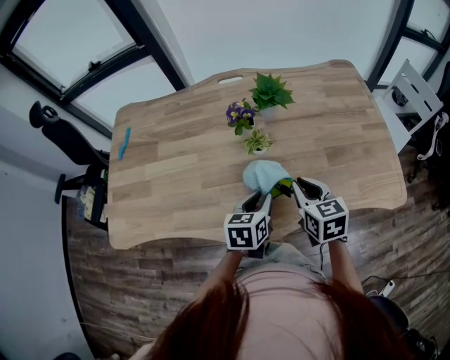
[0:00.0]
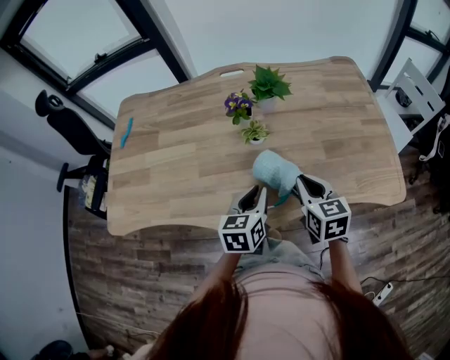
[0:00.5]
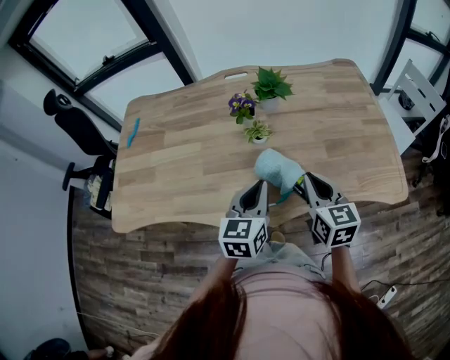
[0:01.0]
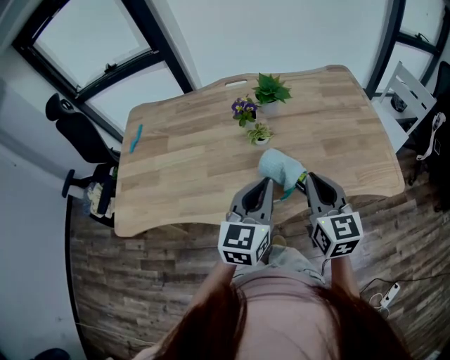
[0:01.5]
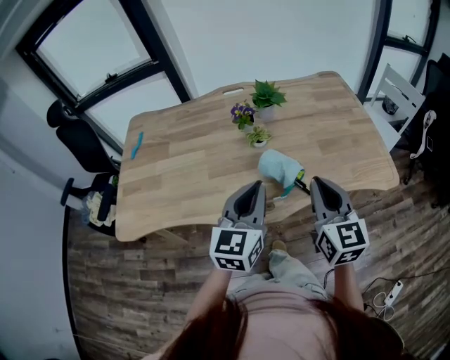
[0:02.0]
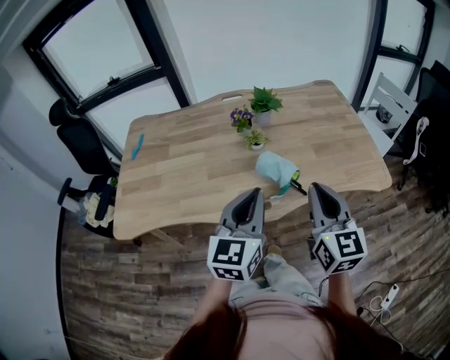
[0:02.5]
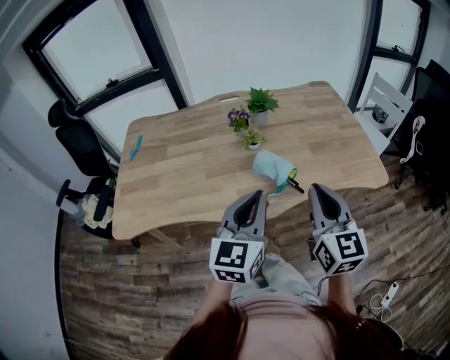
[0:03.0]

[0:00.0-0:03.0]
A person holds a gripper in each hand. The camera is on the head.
0:00.0 to 0:01.5: The two grippers go roughly 15 cm upward and backward. The left gripper rotates some 30 degrees, and closes up, while the right gripper changes its angle by some 20 degrees.
0:01.5 to 0:03.0: The two grippers go about 15 cm backward and upward.

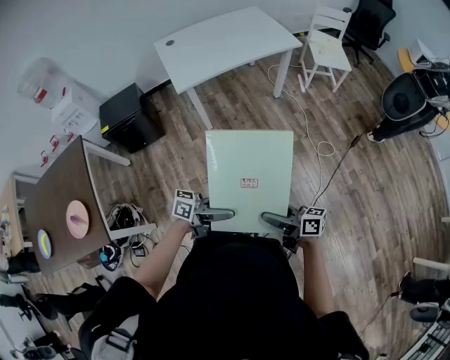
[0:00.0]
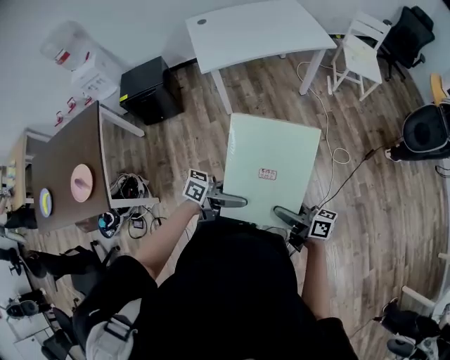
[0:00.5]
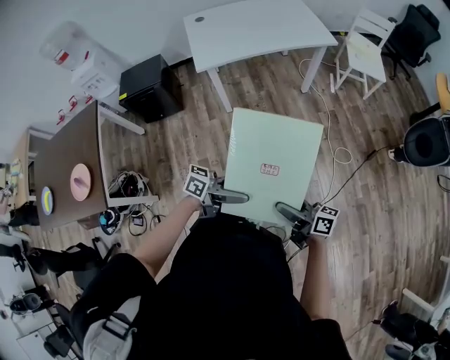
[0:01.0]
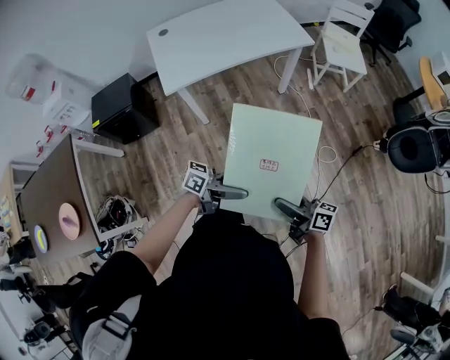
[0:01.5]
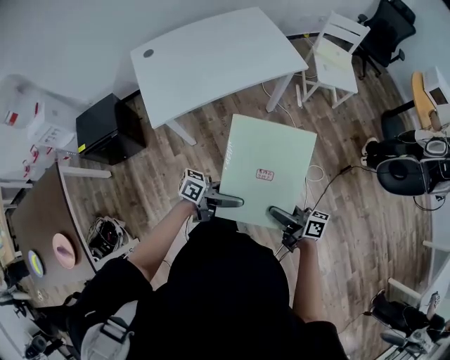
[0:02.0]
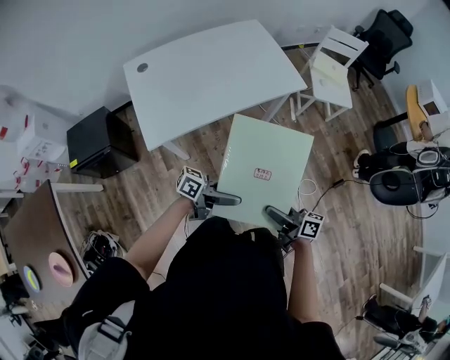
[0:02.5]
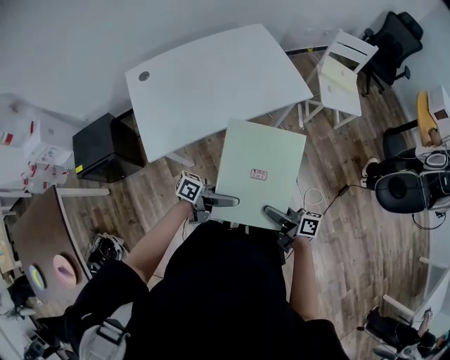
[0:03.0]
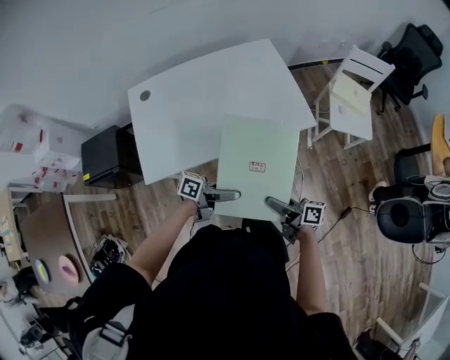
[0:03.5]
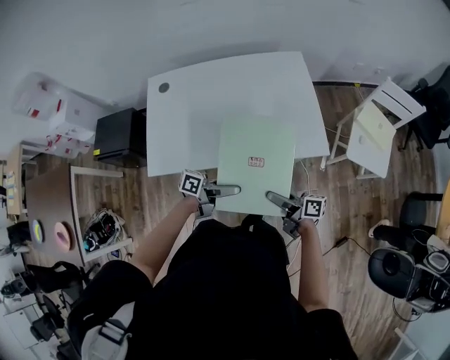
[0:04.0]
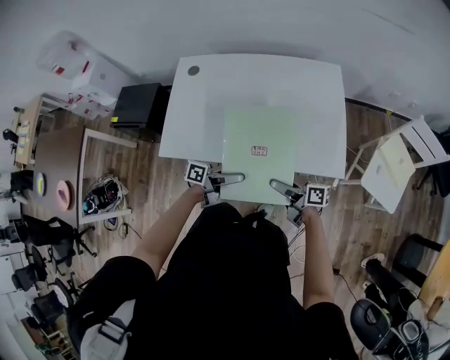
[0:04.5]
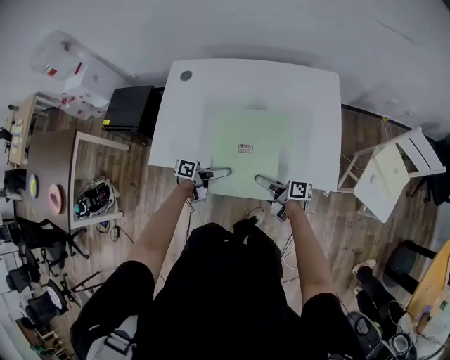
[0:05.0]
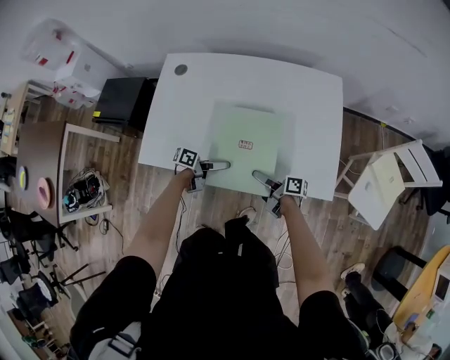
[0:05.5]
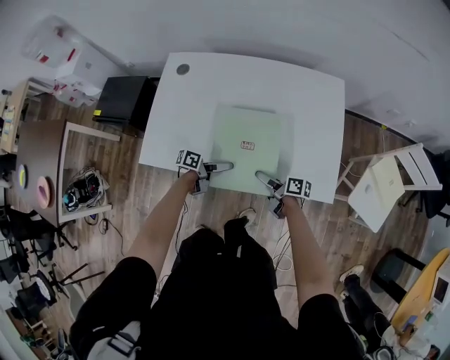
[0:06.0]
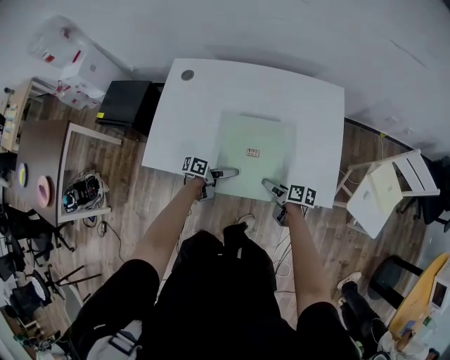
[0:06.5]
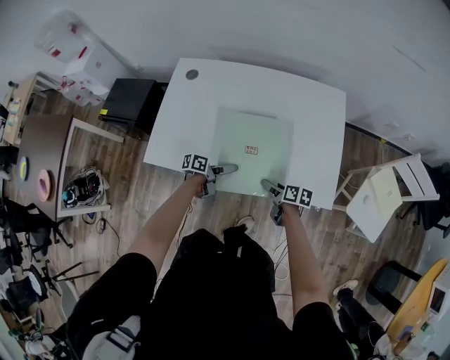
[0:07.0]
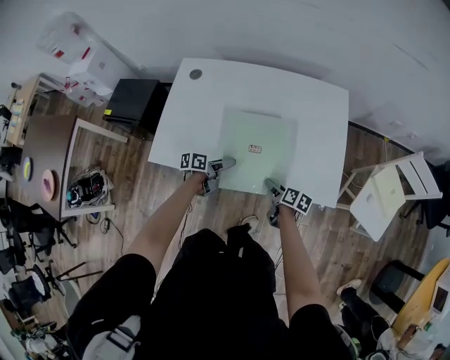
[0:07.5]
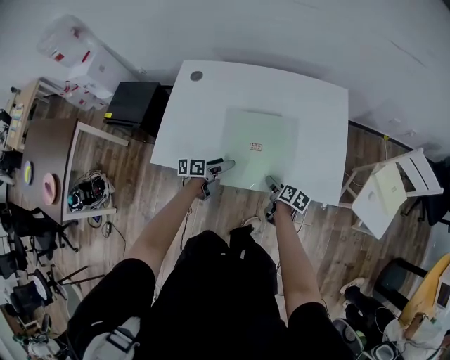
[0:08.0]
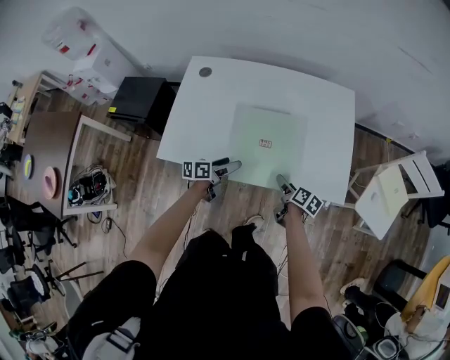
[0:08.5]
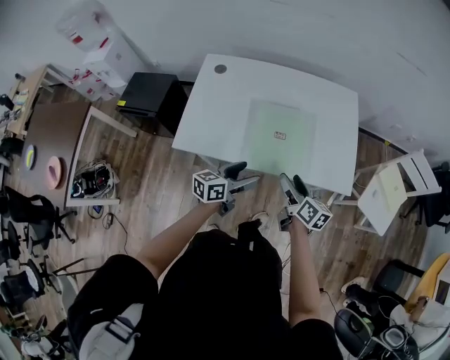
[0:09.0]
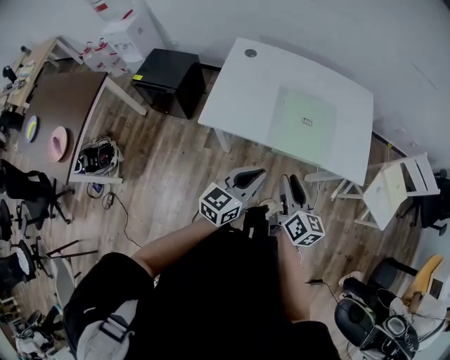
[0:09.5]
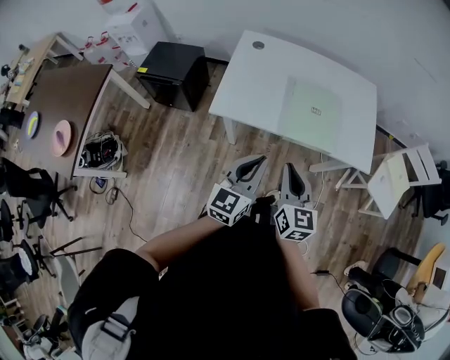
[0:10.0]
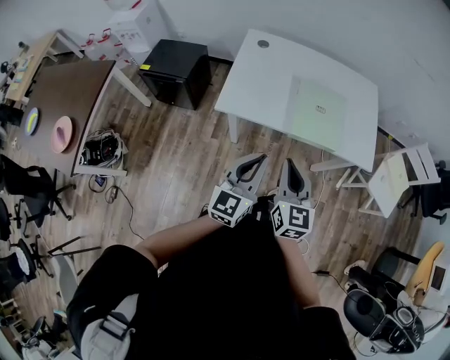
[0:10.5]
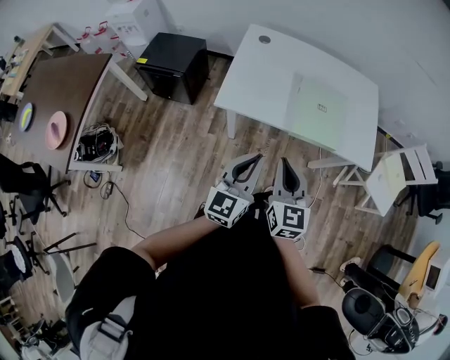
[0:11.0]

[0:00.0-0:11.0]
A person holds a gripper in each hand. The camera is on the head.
0:00.0 to 0:02.0: The right gripper moves about 35 cm. The left gripper shifts by some 35 cm.
0:02.0 to 0:03.5: The left gripper ends up about 35 cm from where it was; the right gripper ends up roughly 35 cm from where it was.
0:03.5 to 0:05.5: The left gripper ends up some 30 cm from where it was, and changes its angle by roughly 40 degrees, while the right gripper changes place by about 30 cm, and swivels approximately 30 degrees.
0:05.5 to 0:07.5: The right gripper ends up roughly 5 cm from where it was, and turns by roughly 40 degrees; the left gripper rotates some 20 degrees.
0:07.5 to 0:09.0: The left gripper heads upward and backward, covering roughly 20 cm, and swivels approximately 30 degrees; the right gripper goes some 20 cm upward, and rotates roughly 30 degrees.
0:09.0 to 0:11.0: The left gripper is displaced backward, to the left and upward by some 30 cm, turns by approximately 40 degrees, and closes its fingers. Meanwhile the right gripper travels to the left, backward and upward by approximately 35 cm, rolls counterclockwise, seen from behind, by about 40 degrees, and closes up.

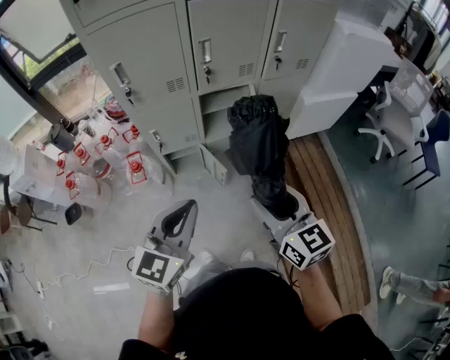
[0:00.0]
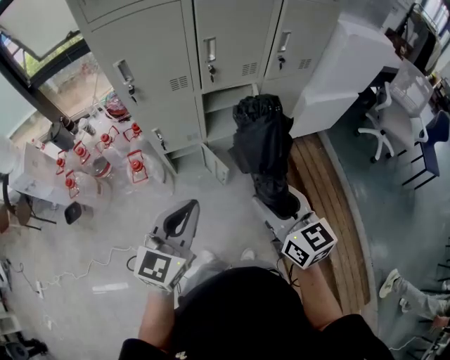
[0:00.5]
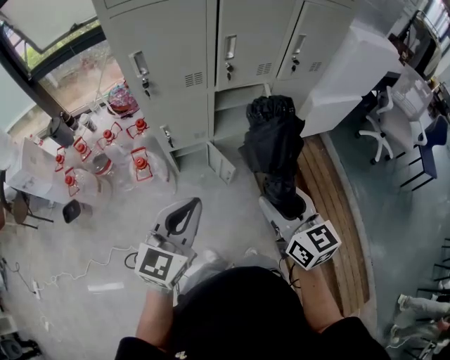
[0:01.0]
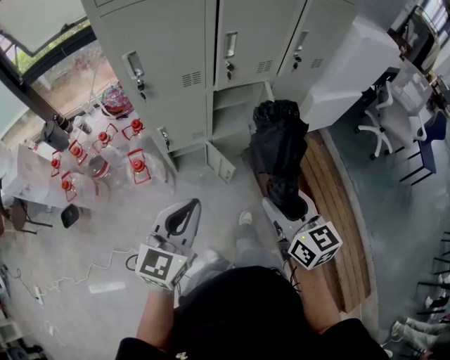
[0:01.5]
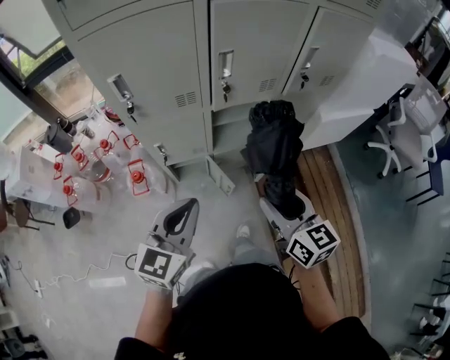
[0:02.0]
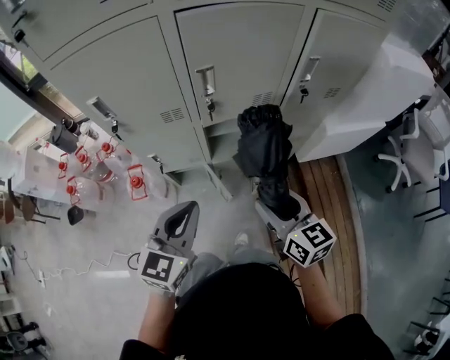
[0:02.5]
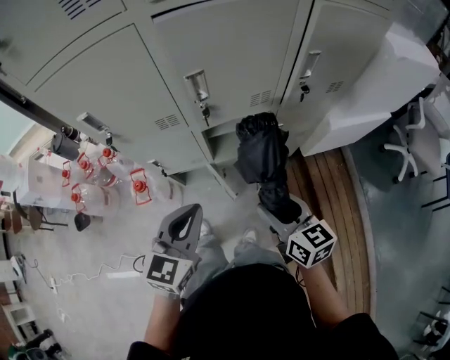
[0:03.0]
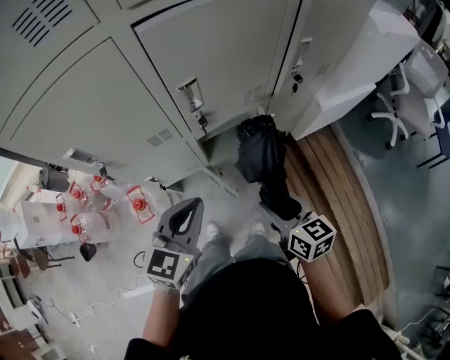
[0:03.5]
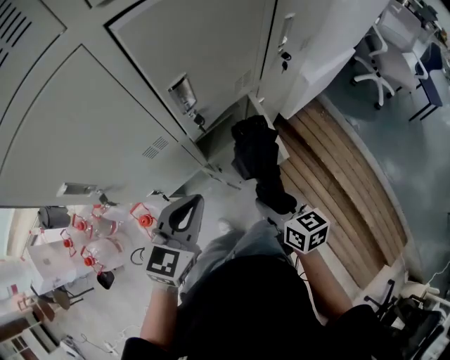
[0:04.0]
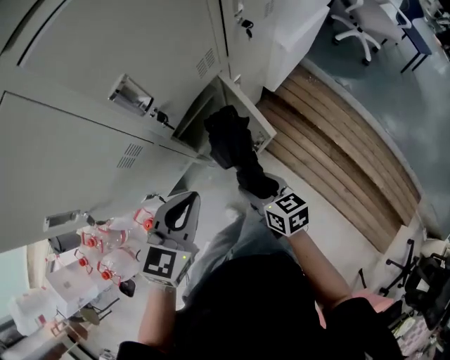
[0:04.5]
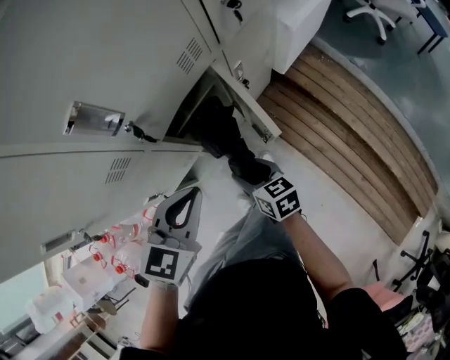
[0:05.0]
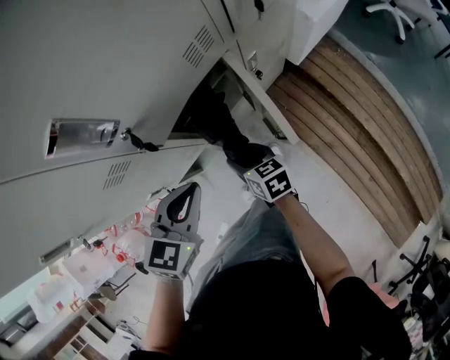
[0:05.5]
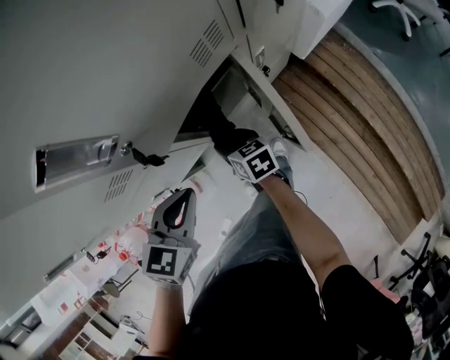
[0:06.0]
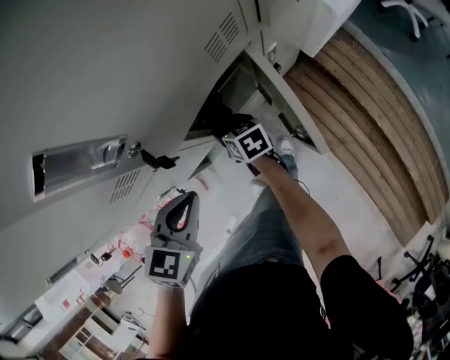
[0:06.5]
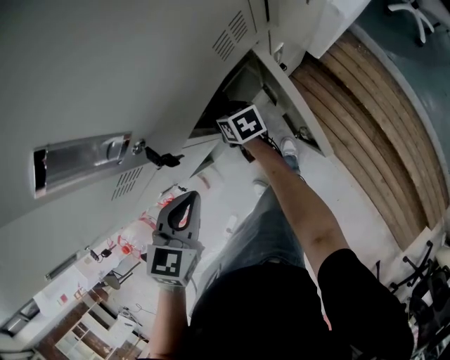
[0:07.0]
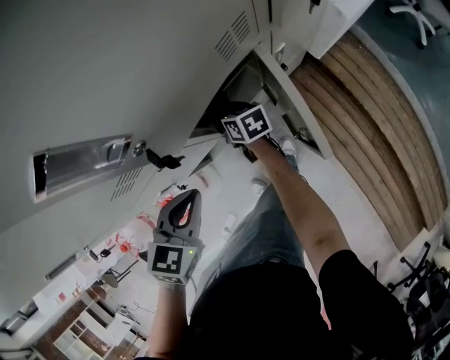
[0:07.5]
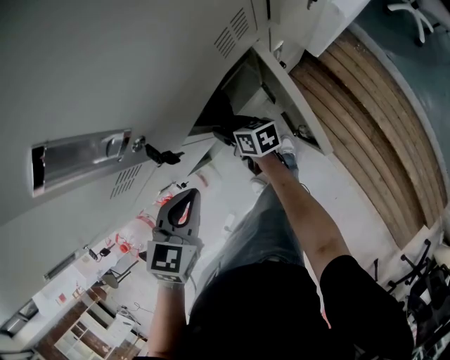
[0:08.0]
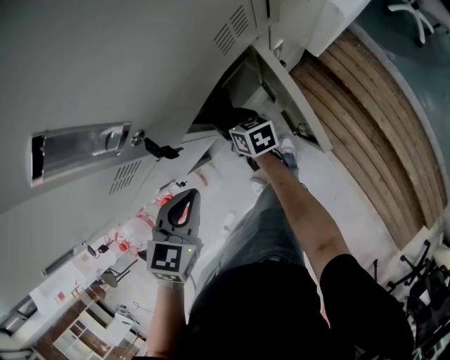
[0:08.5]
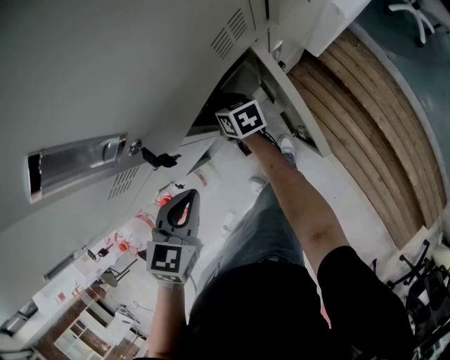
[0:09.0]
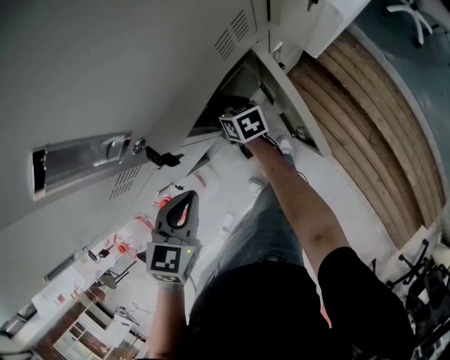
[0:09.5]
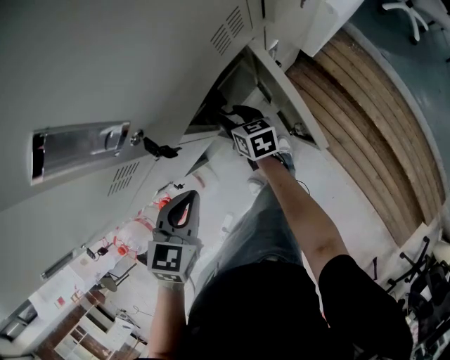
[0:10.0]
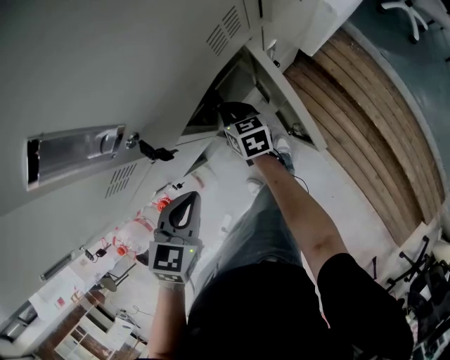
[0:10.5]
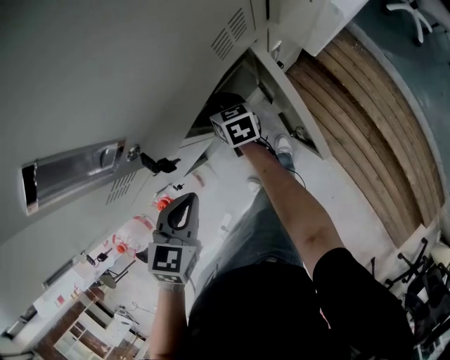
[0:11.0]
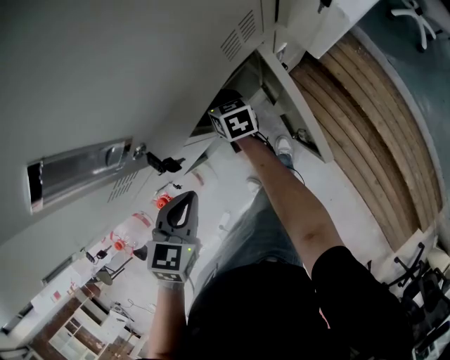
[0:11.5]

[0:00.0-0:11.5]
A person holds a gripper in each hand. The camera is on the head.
0:00.0 to 0:02.0: The grippers both shift forward by approximately 15 cm.
0:02.0 to 0:04.0: The right gripper heads downward and forward, covering some 20 cm, and changes its angle by roughly 30 degrees. Meanwhile the left gripper is displaced forward by approximately 20 cm, and rotates approximately 20 degrees.
0:04.0 to 0:06.0: The right gripper travels downward, forward and to the left by about 30 cm; the left gripper moves downward and forward, about 15 cm.
0:06.0 to 0:07.5: The right gripper travels forward by approximately 10 cm.
0:07.5 to 0:09.5: The grippers stay close to where they were, moving slightly.
0:09.5 to 0:11.5: The right gripper closes.

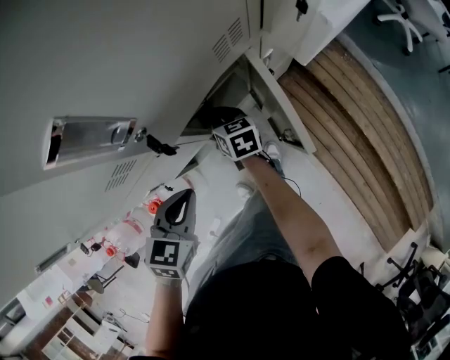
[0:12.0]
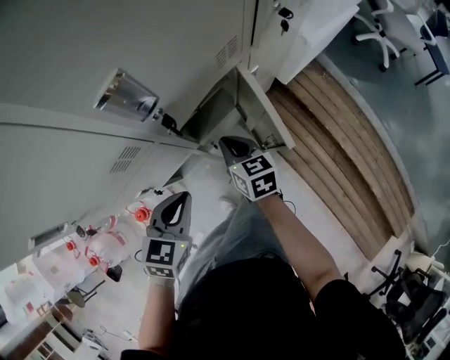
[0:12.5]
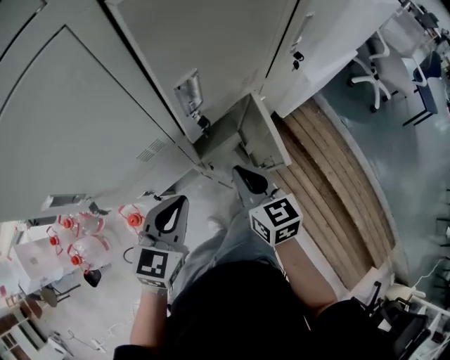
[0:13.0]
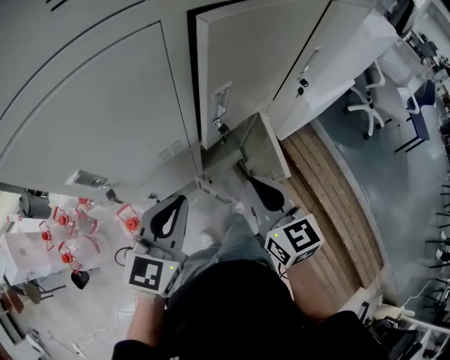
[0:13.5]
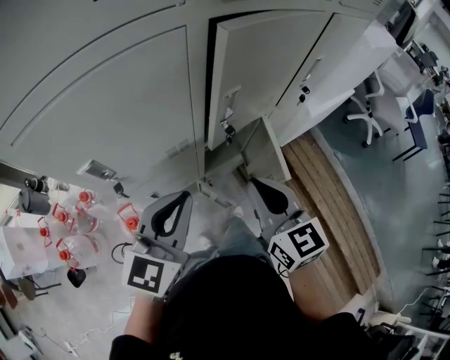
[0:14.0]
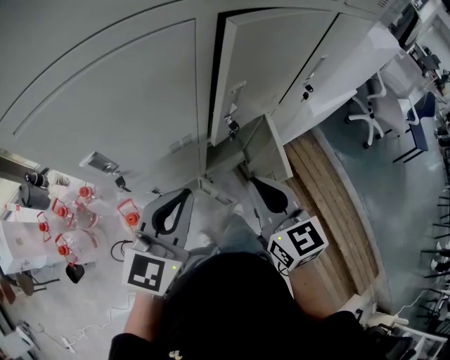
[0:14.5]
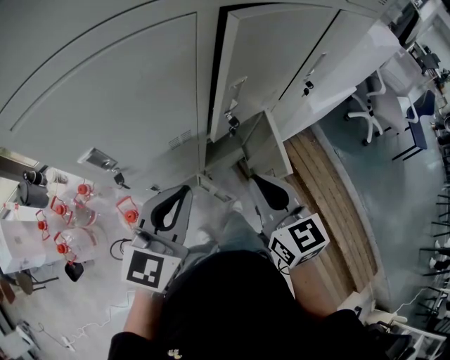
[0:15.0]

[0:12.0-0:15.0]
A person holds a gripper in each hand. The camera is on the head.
0:12.0 to 0:13.5: The left gripper goes some 20 cm upward, and tilts its fingers approximately 30 degrees upward. The right gripper travels upward and backward by roughly 40 cm, and rotates about 30 degrees.
0:13.5 to 0:15.0: The grippers make only small movements.
